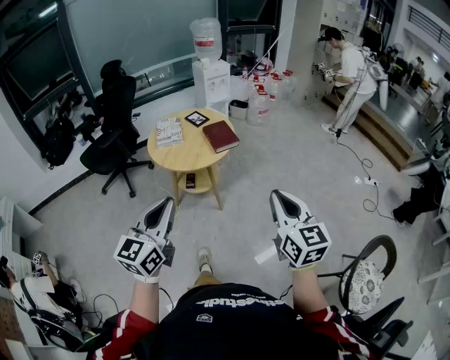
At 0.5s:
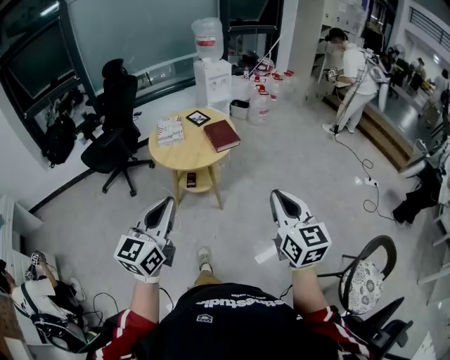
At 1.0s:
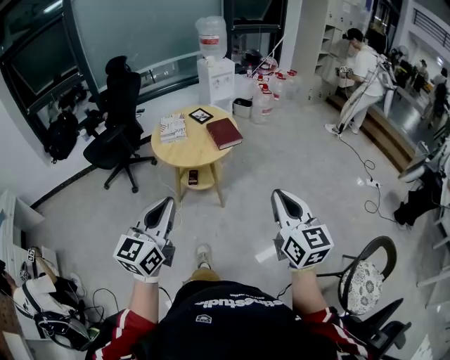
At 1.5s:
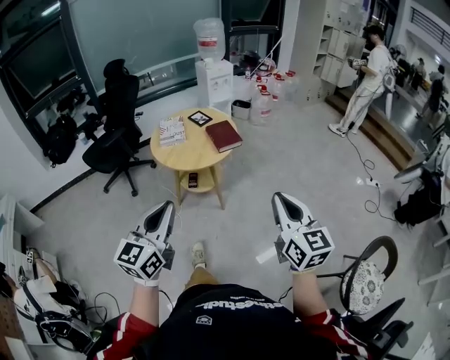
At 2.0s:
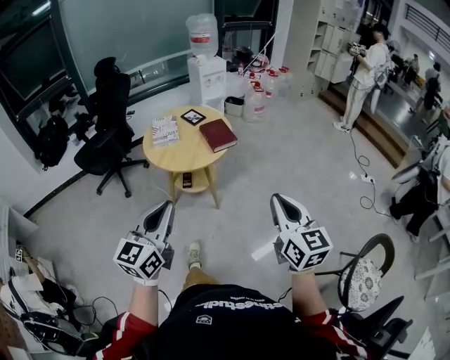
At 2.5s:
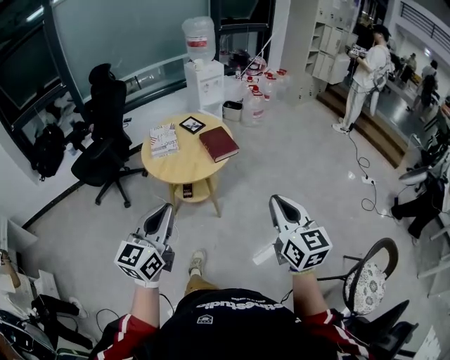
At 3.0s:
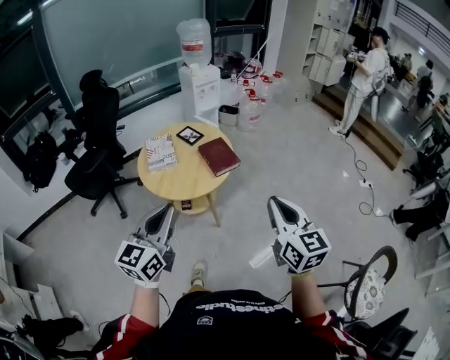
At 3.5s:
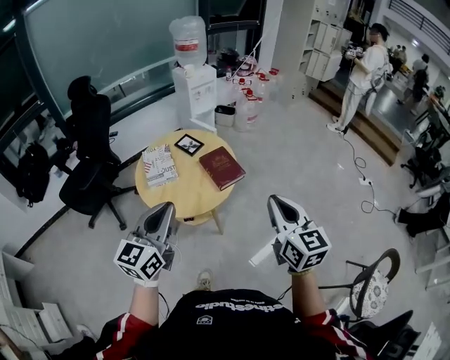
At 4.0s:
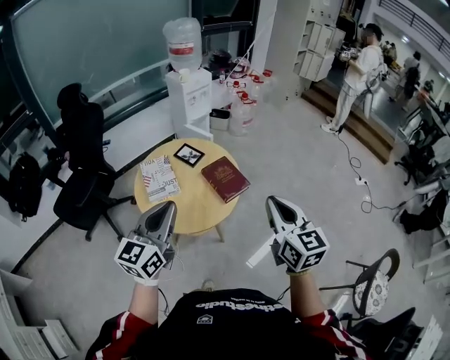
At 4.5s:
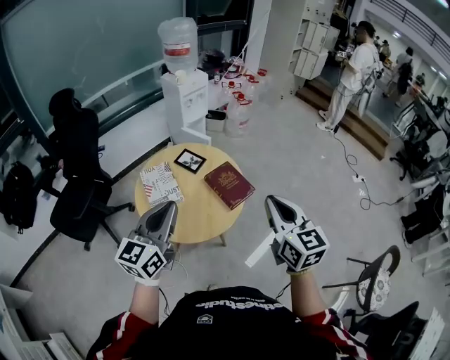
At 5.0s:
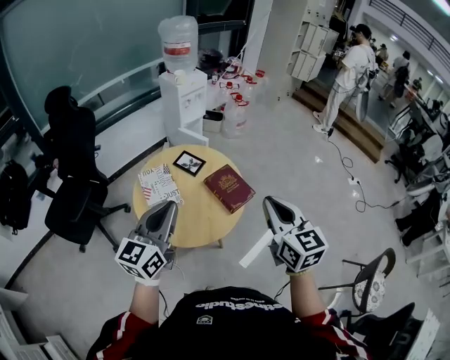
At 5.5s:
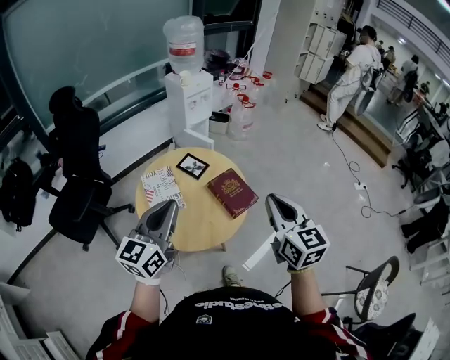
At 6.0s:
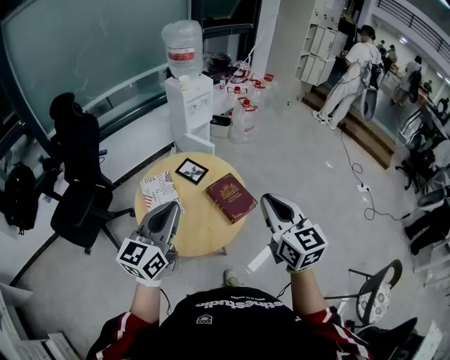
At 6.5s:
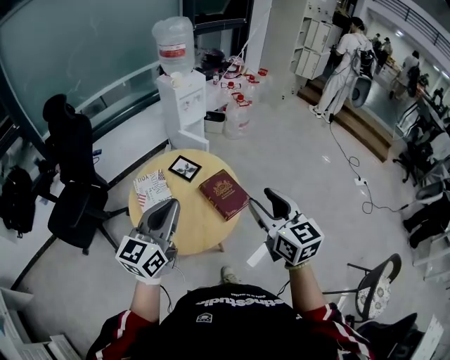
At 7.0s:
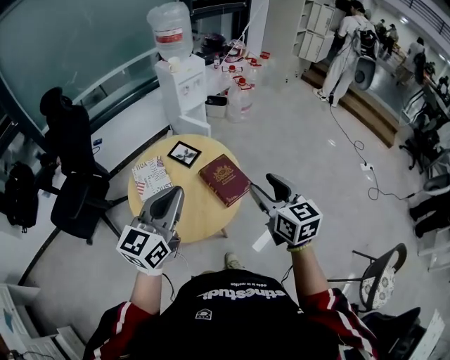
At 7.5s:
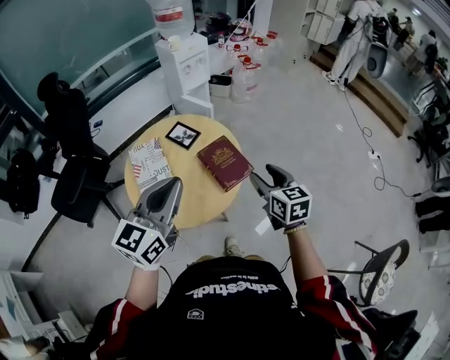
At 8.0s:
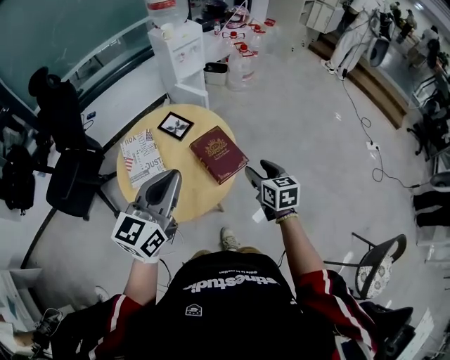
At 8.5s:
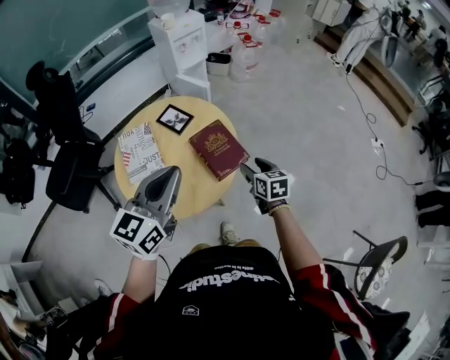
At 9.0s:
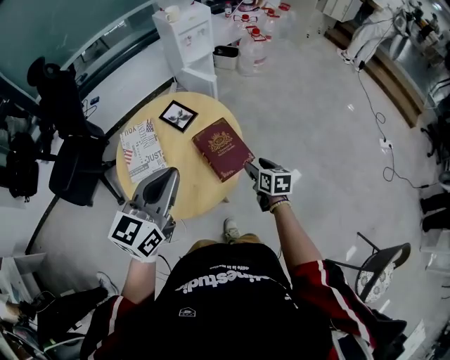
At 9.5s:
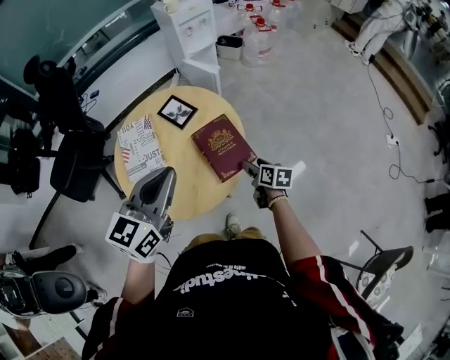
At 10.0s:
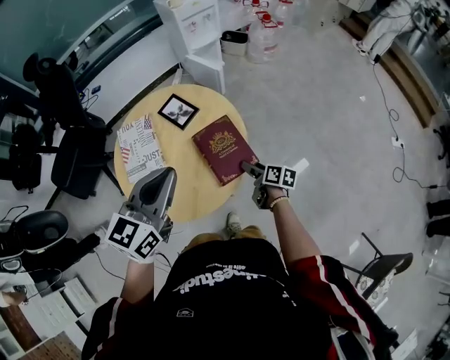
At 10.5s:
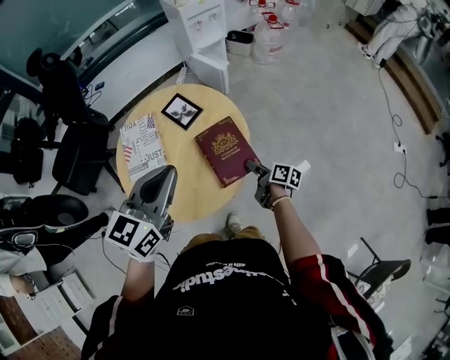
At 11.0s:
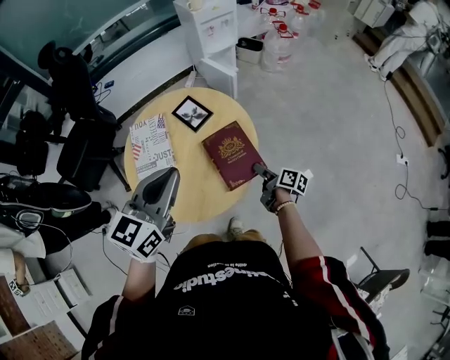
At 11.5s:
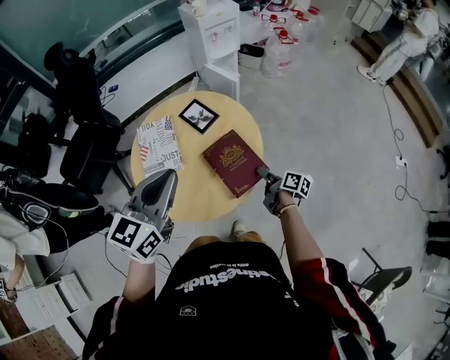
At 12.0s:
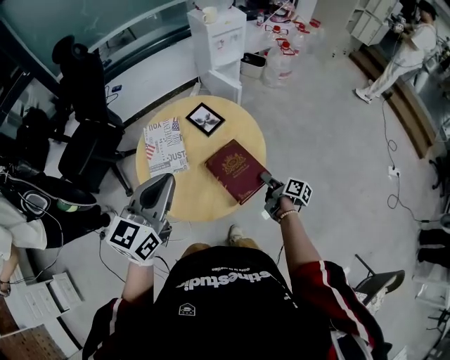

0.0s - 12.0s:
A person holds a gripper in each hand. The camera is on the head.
0.0s - 2.0s: There are only small adjustments of the grippers.
2.0s - 4.0s: The two grippers go approximately 40 cm forward and to the left.
4.0s - 6.0s: The right gripper is displaced forward and to the left by some 15 cm, while the left gripper goes approximately 10 cm forward.
6.0s - 8.0s: The right gripper heads downward, covering roughly 25 cm, changes its angle by some 30 degrees, and opens its fingers; the left gripper moves to the right, approximately 10 cm.
8.0s - 10.0s: The right gripper is displaced downward and forward by some 25 cm, and turns by approximately 40 degrees, while the left gripper goes some 10 cm forward and downward.
10.0s - 12.0s: The left gripper heads to the left, covering some 10 cm; the right gripper changes place by about 5 cm.

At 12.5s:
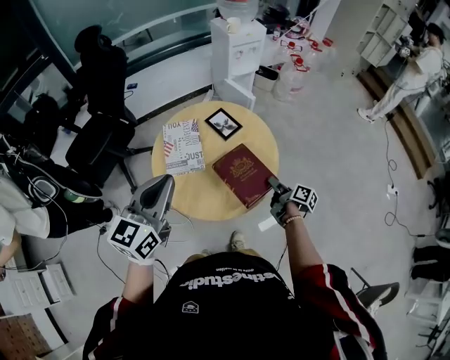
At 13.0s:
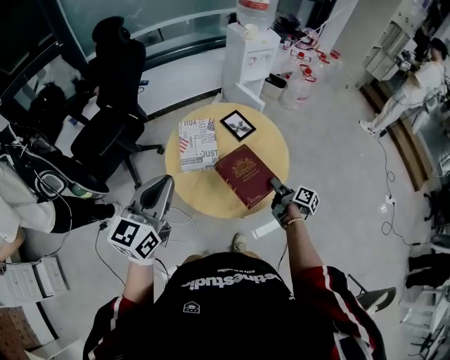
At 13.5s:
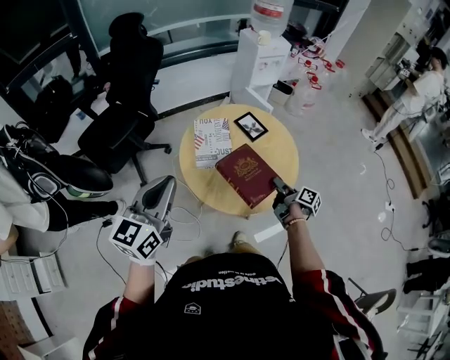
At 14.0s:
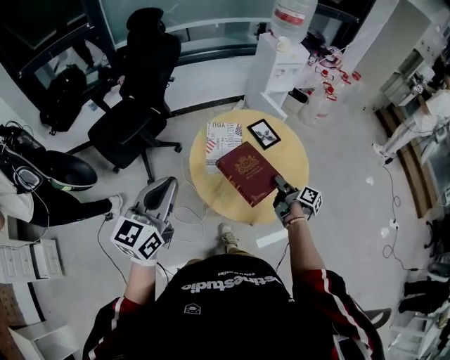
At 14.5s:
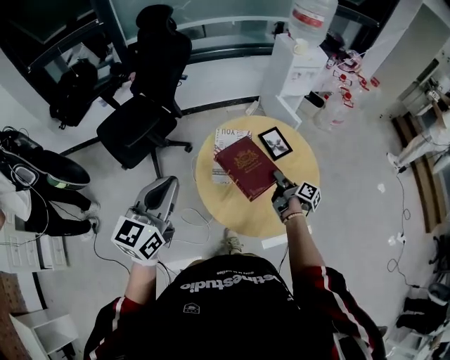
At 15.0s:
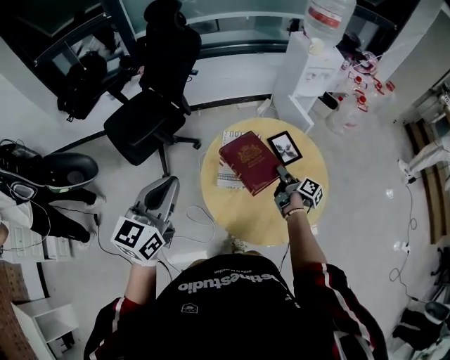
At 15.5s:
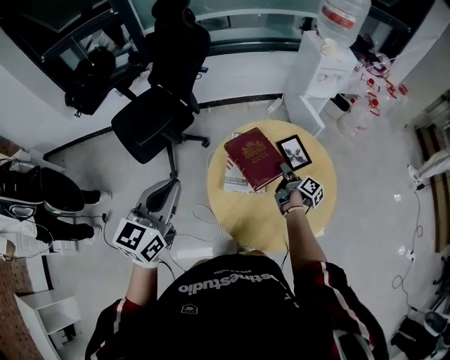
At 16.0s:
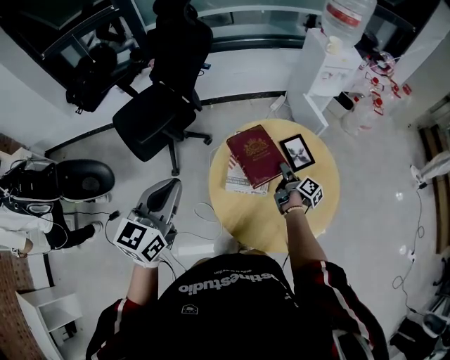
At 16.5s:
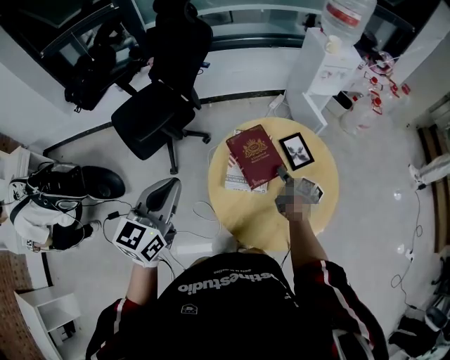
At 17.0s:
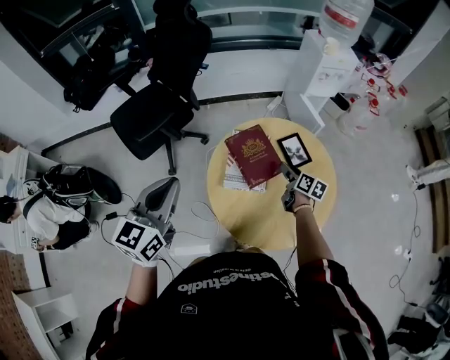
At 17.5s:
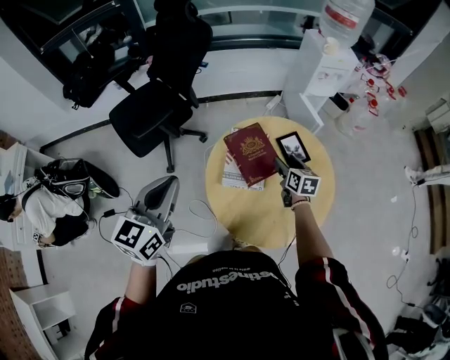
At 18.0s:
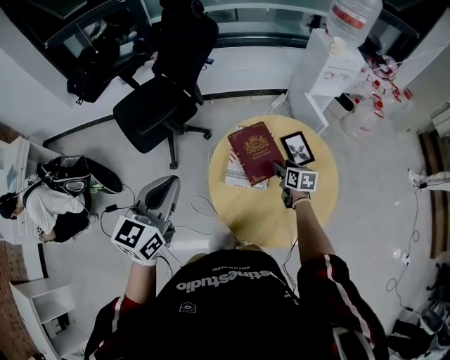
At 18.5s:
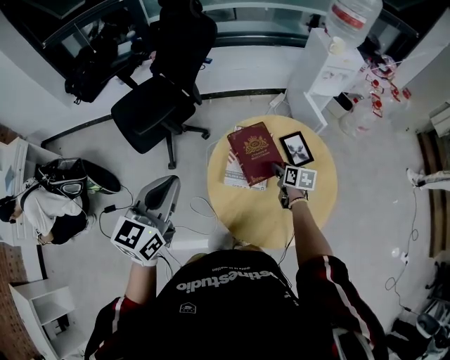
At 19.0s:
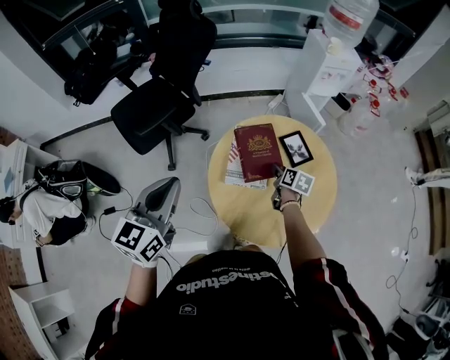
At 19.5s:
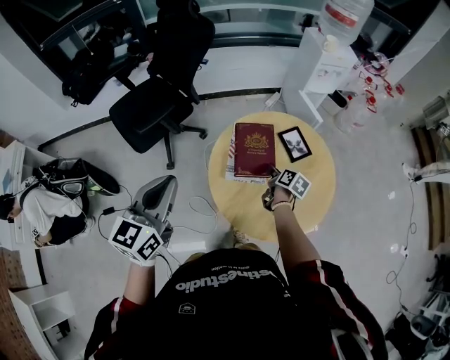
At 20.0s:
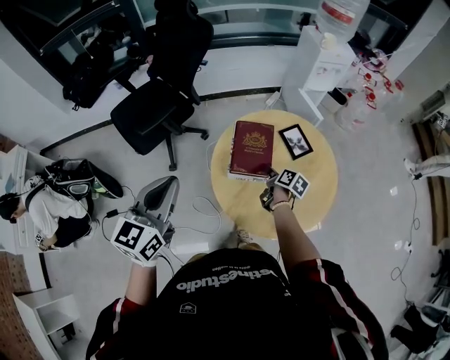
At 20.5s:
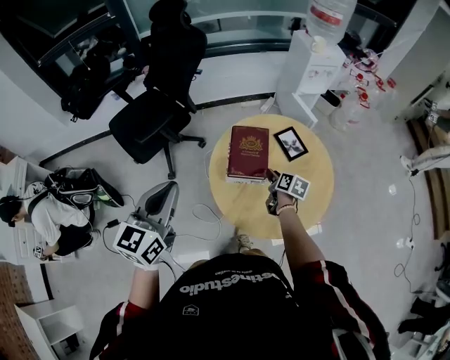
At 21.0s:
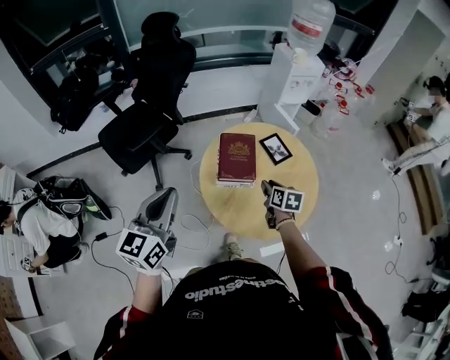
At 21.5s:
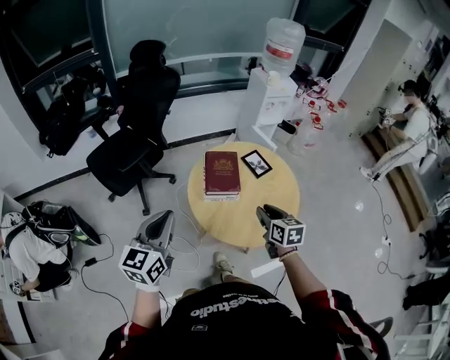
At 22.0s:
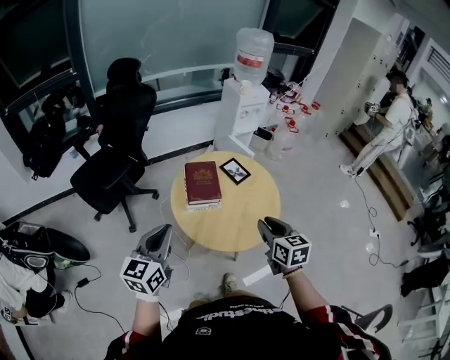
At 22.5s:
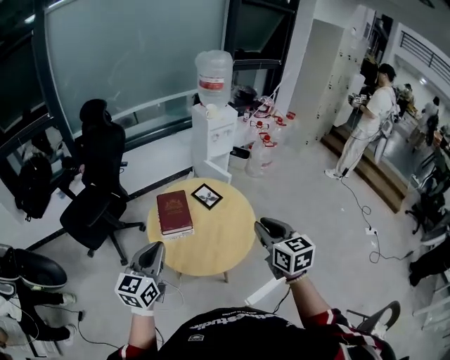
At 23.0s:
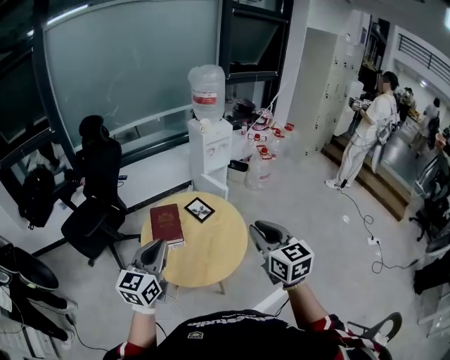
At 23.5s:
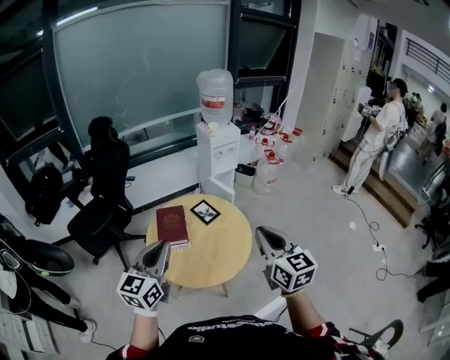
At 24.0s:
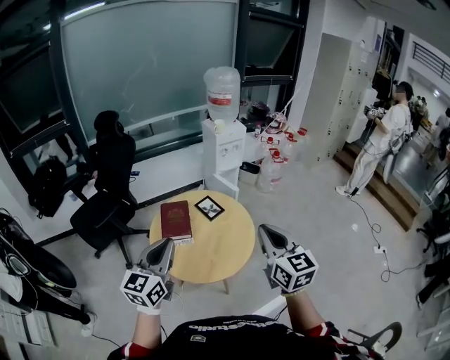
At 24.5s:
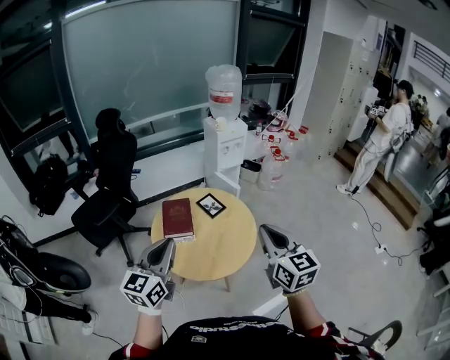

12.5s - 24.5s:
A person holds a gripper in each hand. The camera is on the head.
12.5s - 14.5s: The right gripper moves to the left and forward, roughly 25 cm. Meanwhile the left gripper heads to the left, covering some 15 cm.
14.5s - 16.5s: The right gripper moves forward and downward, some 10 cm. The left gripper shifts approximately 5 cm forward.
16.5s - 18.5s: The right gripper swivels about 40 degrees.
18.5s - 20.5s: The right gripper heads backward, covering approximately 5 cm, changes its angle by roughly 20 degrees, and closes. The left gripper shifts by about 5 cm.
20.5s - 22.5s: The left gripper heads to the right and backward, covering roughly 15 cm, while the right gripper heads upward, backward and to the right, covering about 50 cm, and rotates some 40 degrees.
22.5s - 24.5s: The right gripper goes roughly 5 cm upward. The left gripper goes approximately 10 cm to the right and upward.

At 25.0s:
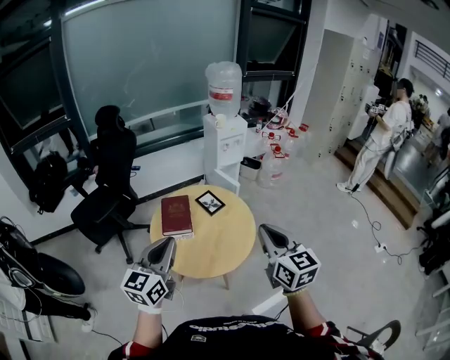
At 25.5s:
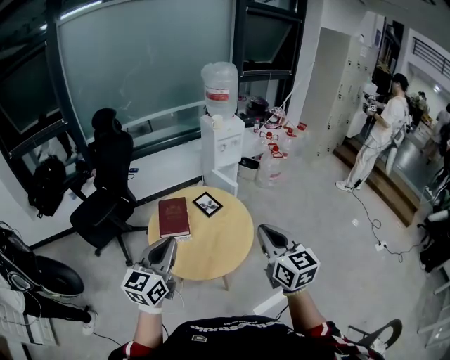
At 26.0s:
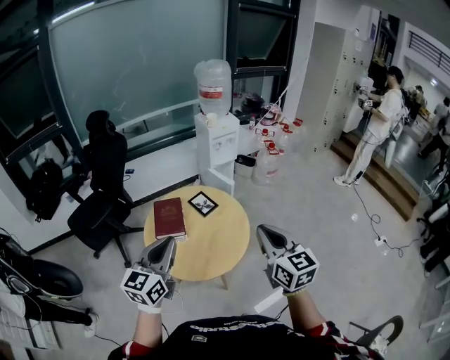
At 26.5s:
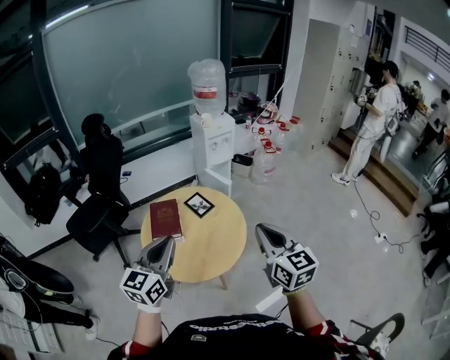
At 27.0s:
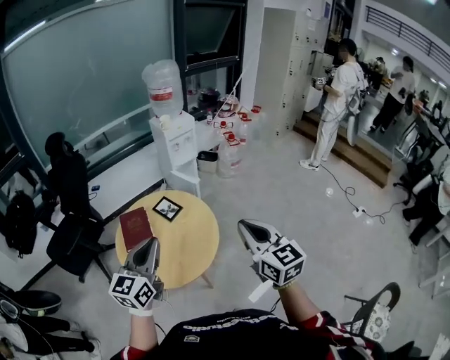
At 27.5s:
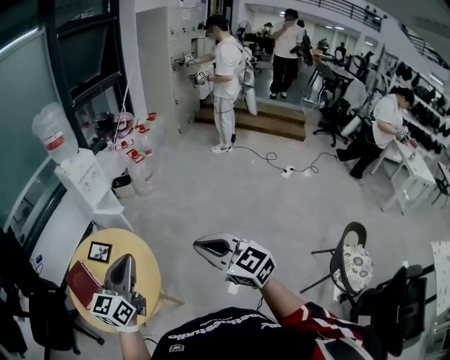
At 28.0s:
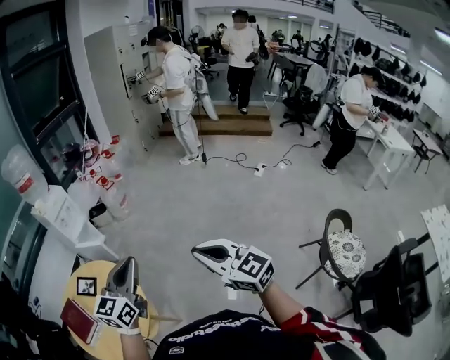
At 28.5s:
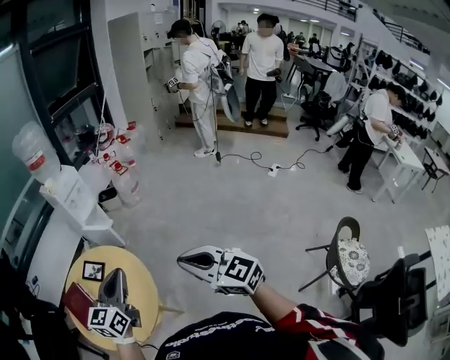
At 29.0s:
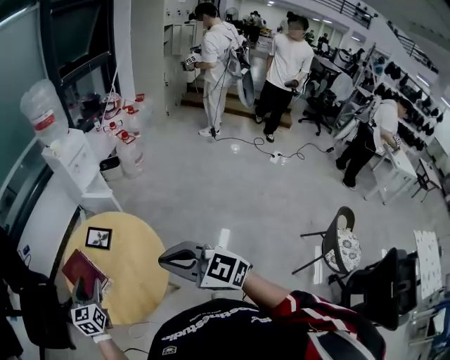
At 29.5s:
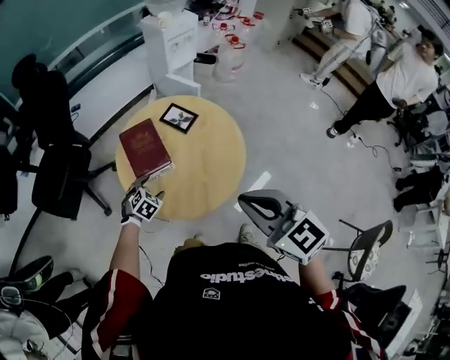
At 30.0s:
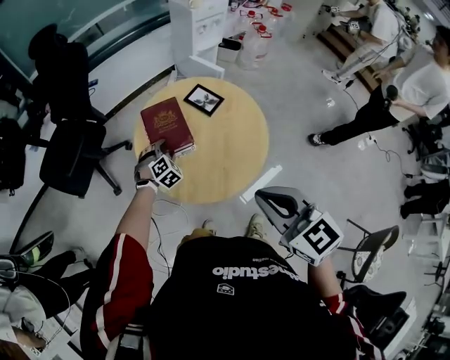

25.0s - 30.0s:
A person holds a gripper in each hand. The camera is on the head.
25.0s - 27.5s: The grippers both shift to the right by some 25 cm. The left gripper turns by some 30 degrees.
27.5s - 30.0s: The right gripper shifts by about 40 cm, and changes its angle by some 20 degrees; the left gripper is displaced downward by about 40 cm, angles its fingers downward, by some 50 degrees, and opens its fingers.
